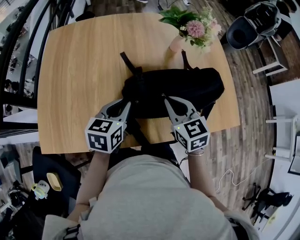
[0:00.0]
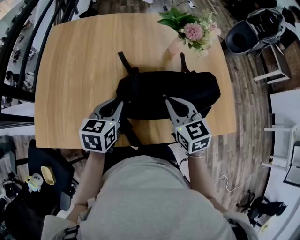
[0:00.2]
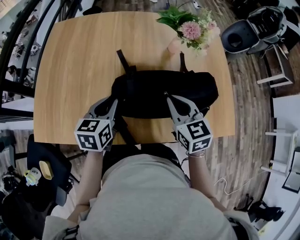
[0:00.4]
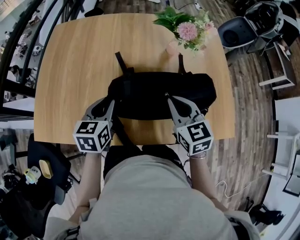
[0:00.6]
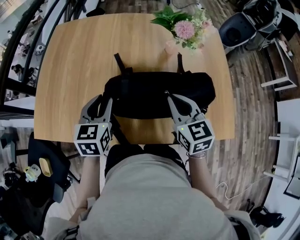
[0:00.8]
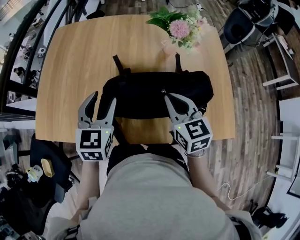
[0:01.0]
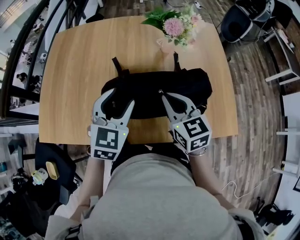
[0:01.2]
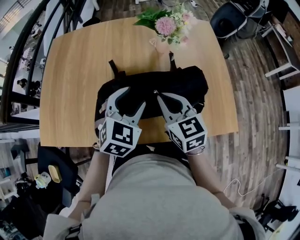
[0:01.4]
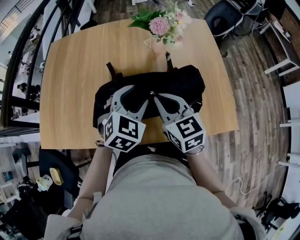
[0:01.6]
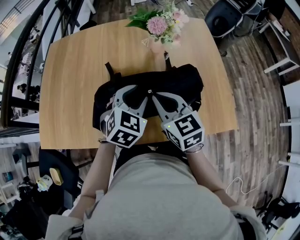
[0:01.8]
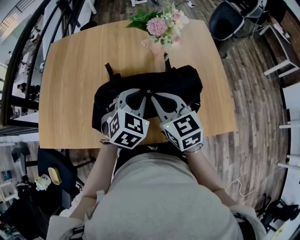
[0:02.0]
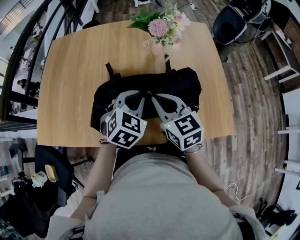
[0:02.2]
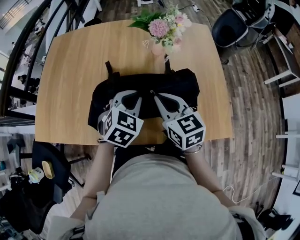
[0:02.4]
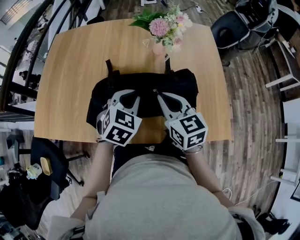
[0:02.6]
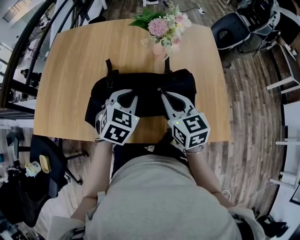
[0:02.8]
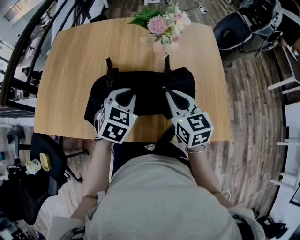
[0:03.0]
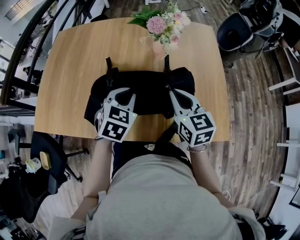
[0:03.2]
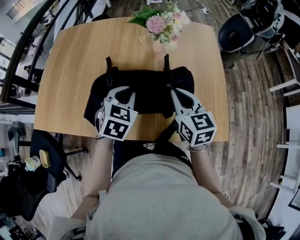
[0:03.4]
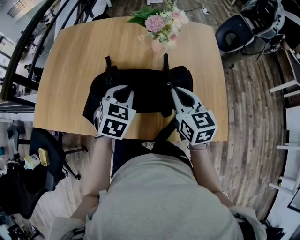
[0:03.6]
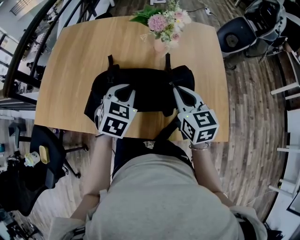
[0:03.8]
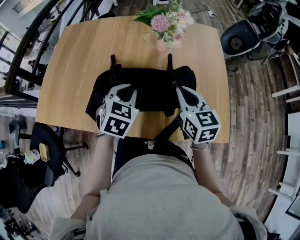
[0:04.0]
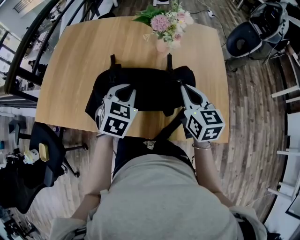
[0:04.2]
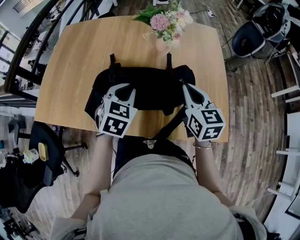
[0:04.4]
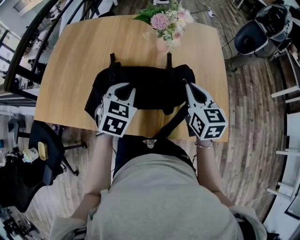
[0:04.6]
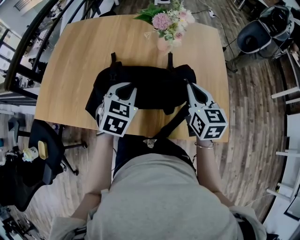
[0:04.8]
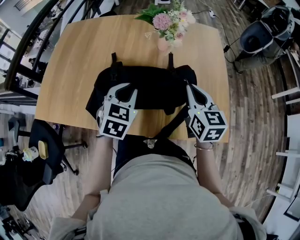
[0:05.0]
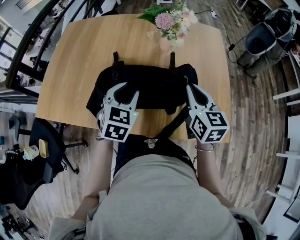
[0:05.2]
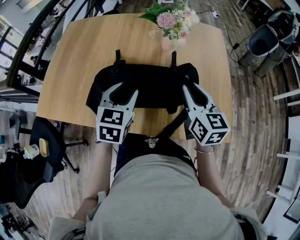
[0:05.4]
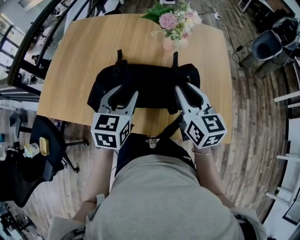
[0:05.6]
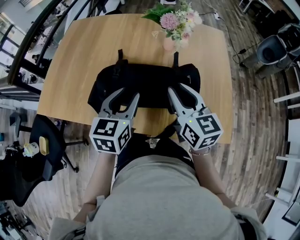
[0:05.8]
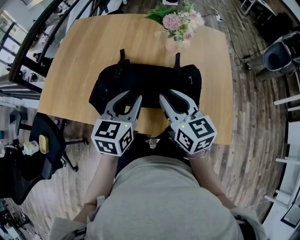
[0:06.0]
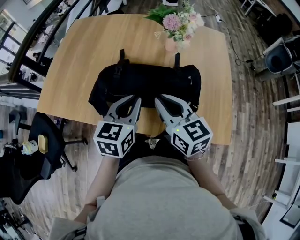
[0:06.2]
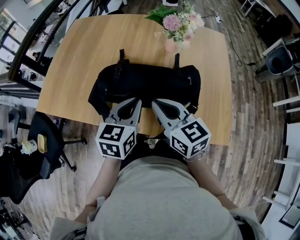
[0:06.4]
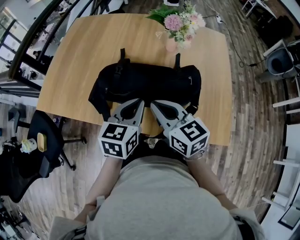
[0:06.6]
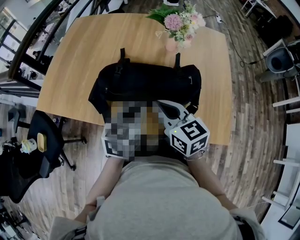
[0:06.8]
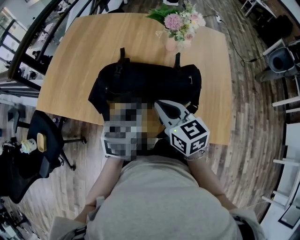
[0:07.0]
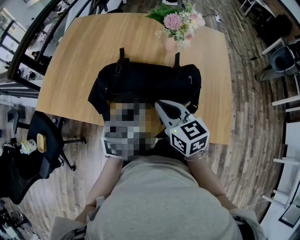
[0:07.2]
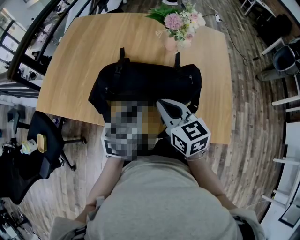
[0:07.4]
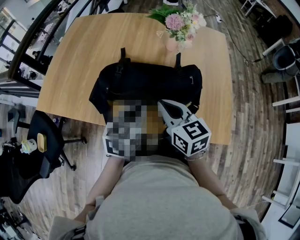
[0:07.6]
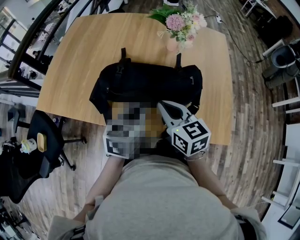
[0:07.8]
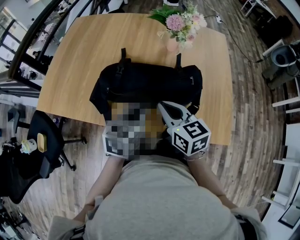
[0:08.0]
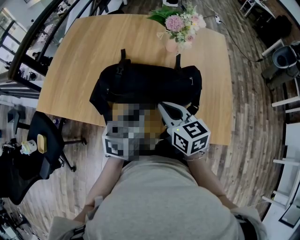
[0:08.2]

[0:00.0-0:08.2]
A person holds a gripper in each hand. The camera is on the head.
0.0 to 1.6 s: The left gripper shifts about 20 cm to the right, twists roughly 40 degrees clockwise, seen from behind, and opens its fingers. The right gripper shifts about 10 cm to the right.
1.6 to 3.2 s: The right gripper shifts approximately 10 cm to the right; the left gripper closes its fingers.
3.2 to 5.0 s: The right gripper shifts about 5 cm to the right.
5.0 to 6.6 s: The right gripper shifts some 15 cm to the left, rotates approximately 30 degrees, and opens, then closes once more. Meanwhile the left gripper travels backward by approximately 5 cm, swivels some 30 degrees, and opens, then closes once more.
6.6 to 8.2 s: The grippers move only a little.

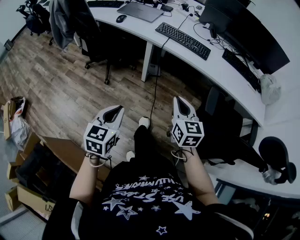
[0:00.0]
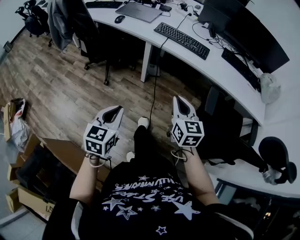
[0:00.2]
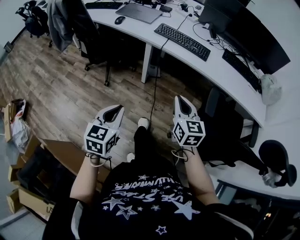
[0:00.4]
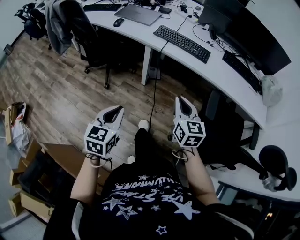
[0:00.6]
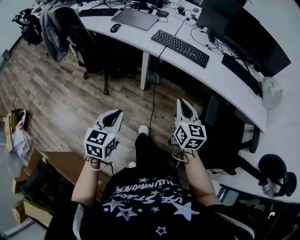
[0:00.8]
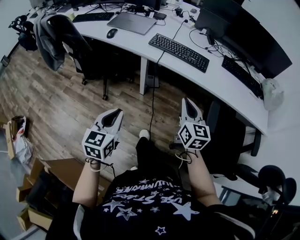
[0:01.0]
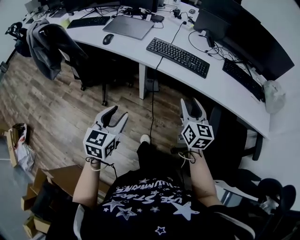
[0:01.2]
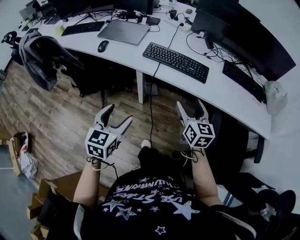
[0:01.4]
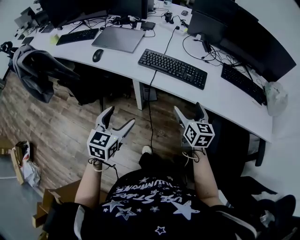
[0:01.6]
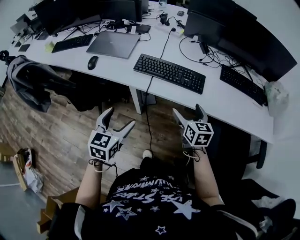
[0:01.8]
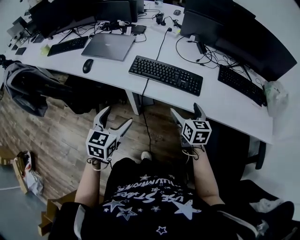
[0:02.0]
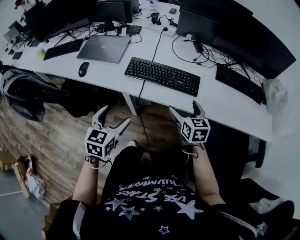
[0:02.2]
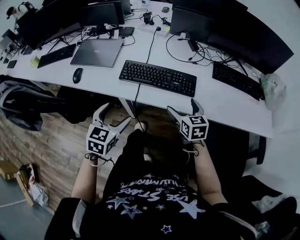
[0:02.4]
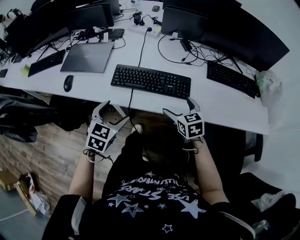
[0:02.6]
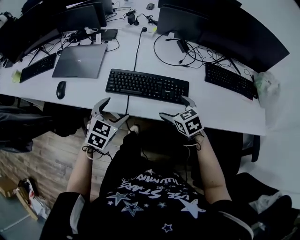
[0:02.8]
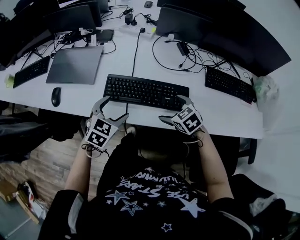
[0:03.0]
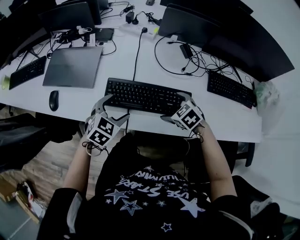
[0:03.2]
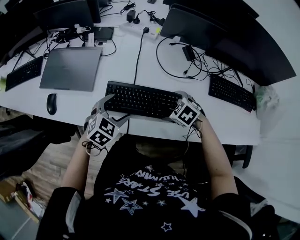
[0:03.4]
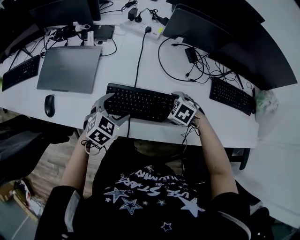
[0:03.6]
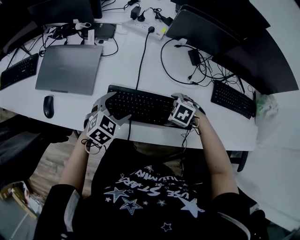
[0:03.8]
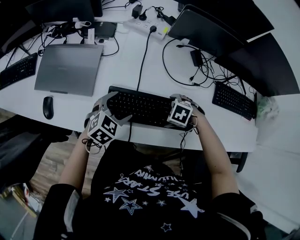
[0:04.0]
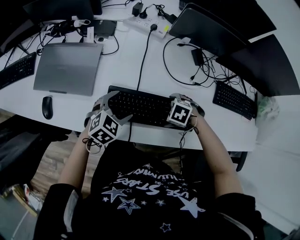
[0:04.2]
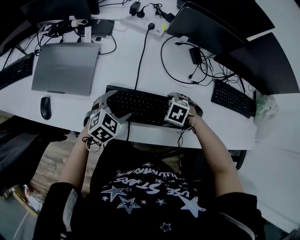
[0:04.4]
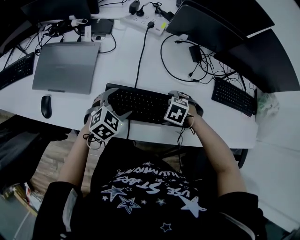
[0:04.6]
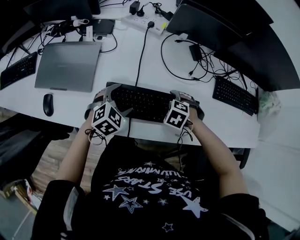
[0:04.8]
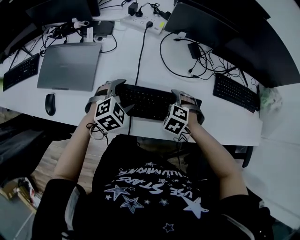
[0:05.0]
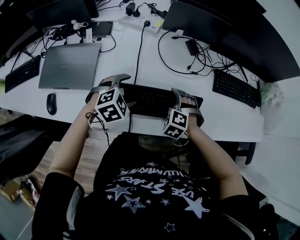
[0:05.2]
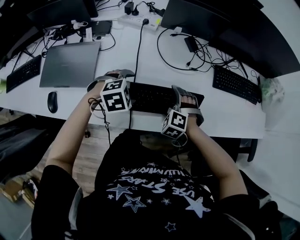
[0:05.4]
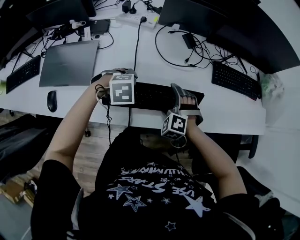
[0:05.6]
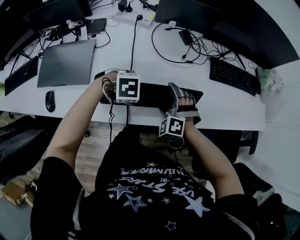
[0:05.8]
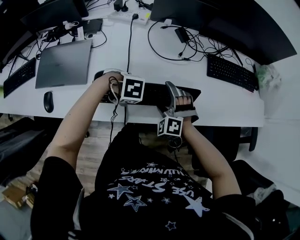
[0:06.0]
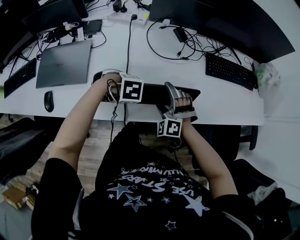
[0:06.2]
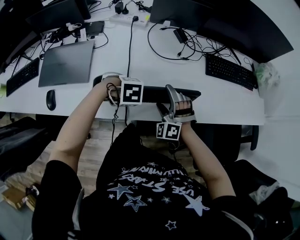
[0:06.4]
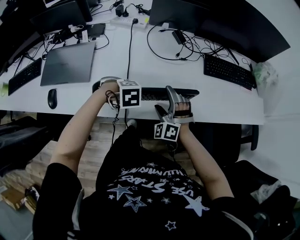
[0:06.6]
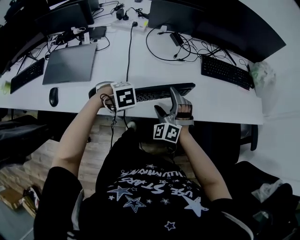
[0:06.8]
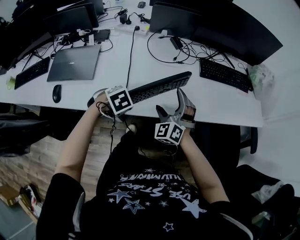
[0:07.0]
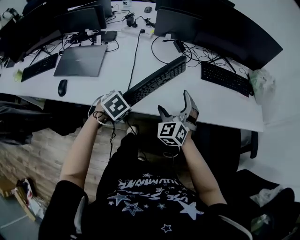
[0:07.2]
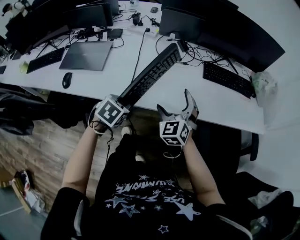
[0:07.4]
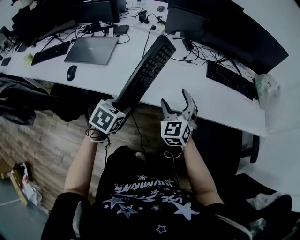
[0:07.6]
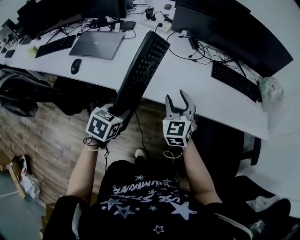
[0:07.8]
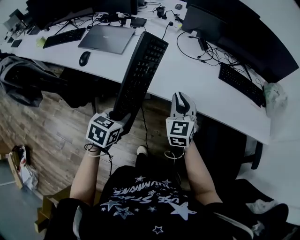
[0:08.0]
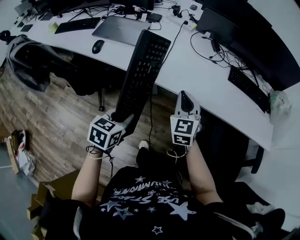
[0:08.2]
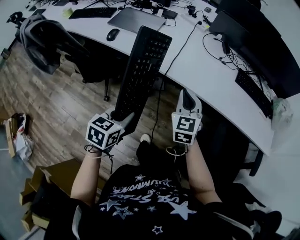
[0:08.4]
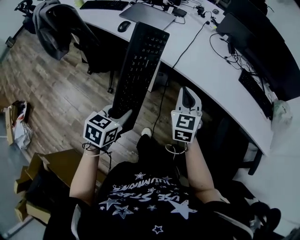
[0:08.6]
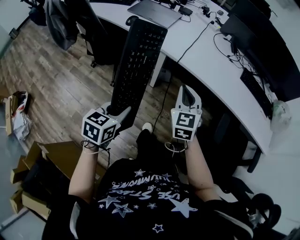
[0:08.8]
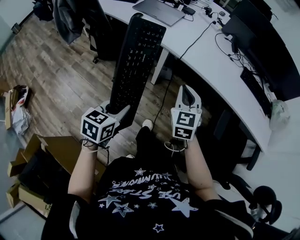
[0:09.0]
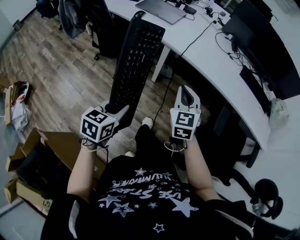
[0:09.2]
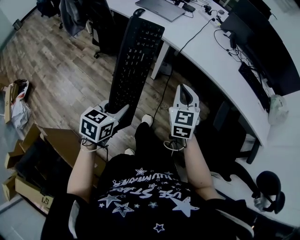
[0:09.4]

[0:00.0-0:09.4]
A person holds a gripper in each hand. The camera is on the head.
0.0 to 1.6 s: The two grippers go some 30 cm forward. The left gripper opens up. The right gripper opens.
1.6 to 3.2 s: The left gripper travels forward by some 35 cm, and changes its angle by some 40 degrees, while the right gripper moves forward and downward, some 25 cm, and tilts its fingers approximately 40 degrees downward.
3.2 to 4.8 s: The left gripper ends up some 10 cm from where it was. Meanwhile the right gripper ends up about 5 cm from where it was, and swivels some 30 degrees.
4.8 to 6.2 s: The right gripper goes roughly 5 cm upward, and points its fingers roughly 50 degrees further upward. Meanwhile the left gripper ends up roughly 10 cm from where it was, points its fingers some 40 degrees further downward, and closes its fingers.
6.2 to 7.8 s: The right gripper changes place by roughly 20 cm, twists roughly 50 degrees clockwise, seen from behind, and closes its fingers. The left gripper changes place by approximately 25 cm, and tips its fingers upward by approximately 40 degrees.
7.8 to 9.4 s: The two grippers go some 35 cm backward. The right gripper closes its fingers; the left gripper swivels some 30 degrees.

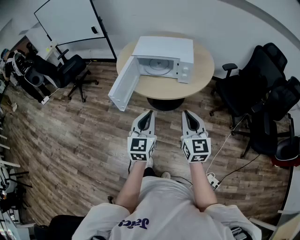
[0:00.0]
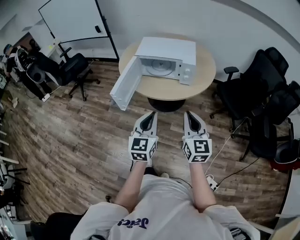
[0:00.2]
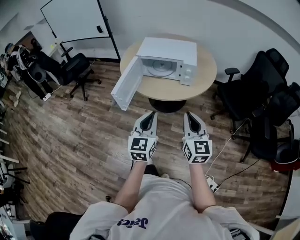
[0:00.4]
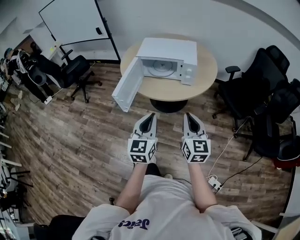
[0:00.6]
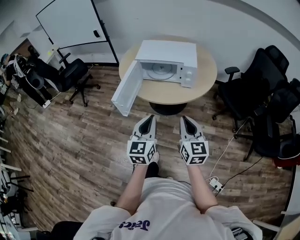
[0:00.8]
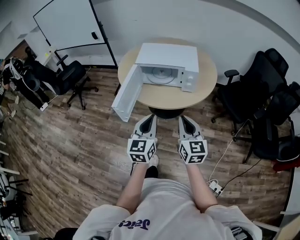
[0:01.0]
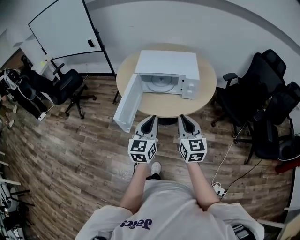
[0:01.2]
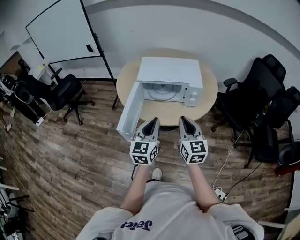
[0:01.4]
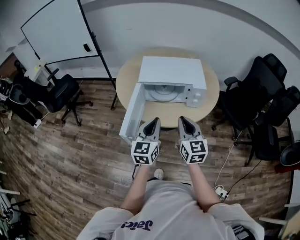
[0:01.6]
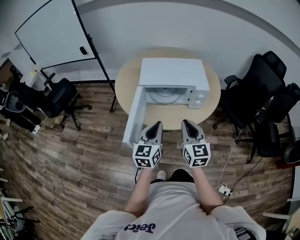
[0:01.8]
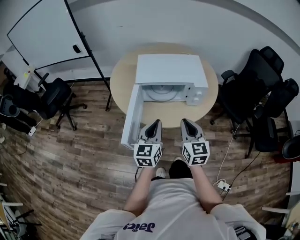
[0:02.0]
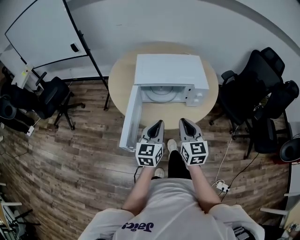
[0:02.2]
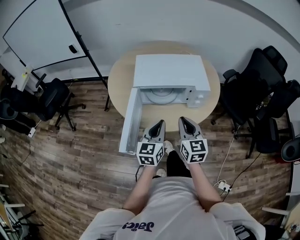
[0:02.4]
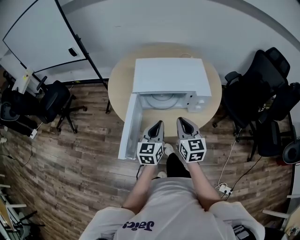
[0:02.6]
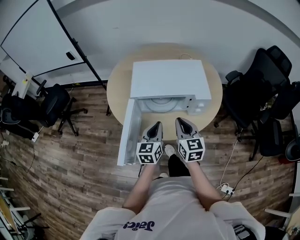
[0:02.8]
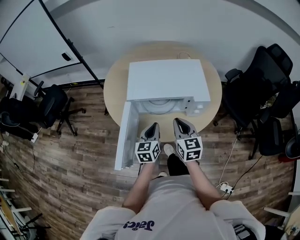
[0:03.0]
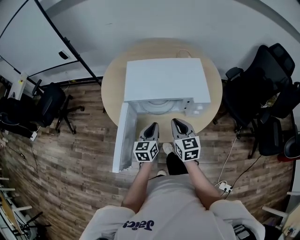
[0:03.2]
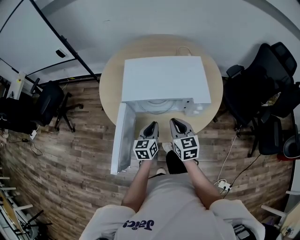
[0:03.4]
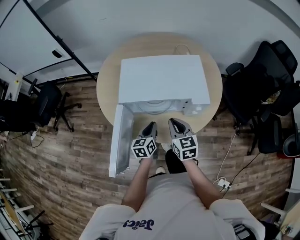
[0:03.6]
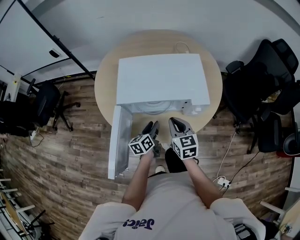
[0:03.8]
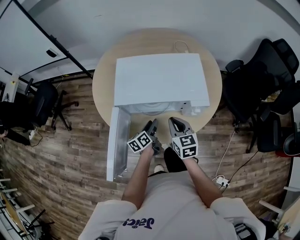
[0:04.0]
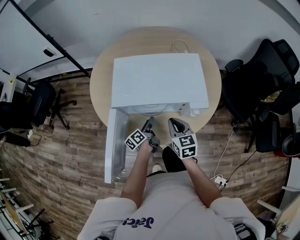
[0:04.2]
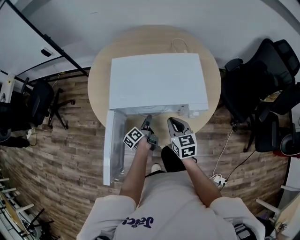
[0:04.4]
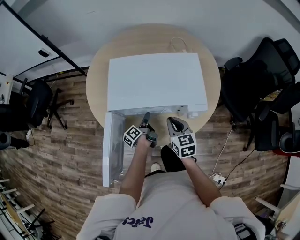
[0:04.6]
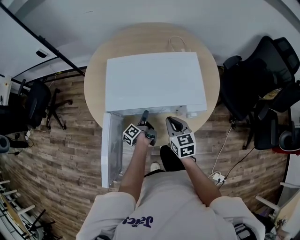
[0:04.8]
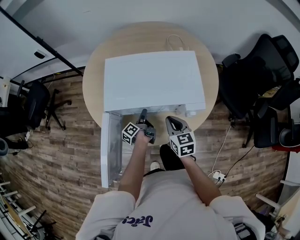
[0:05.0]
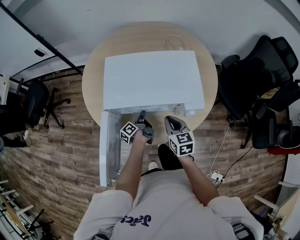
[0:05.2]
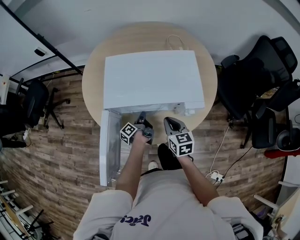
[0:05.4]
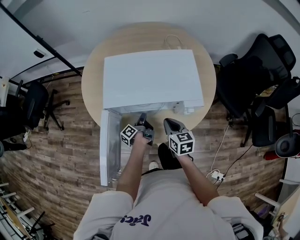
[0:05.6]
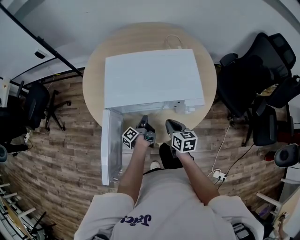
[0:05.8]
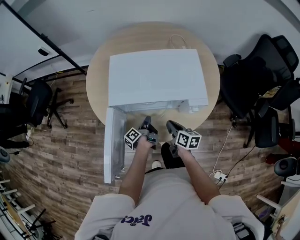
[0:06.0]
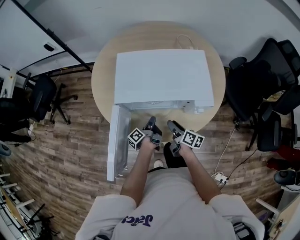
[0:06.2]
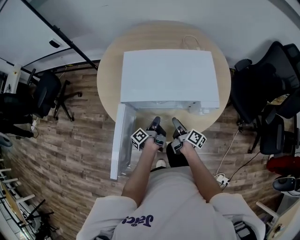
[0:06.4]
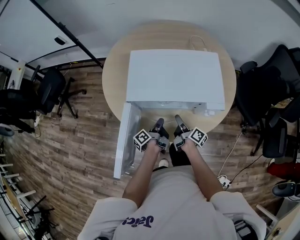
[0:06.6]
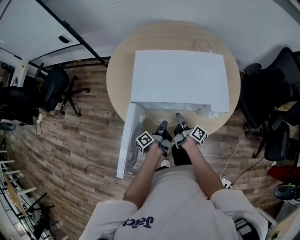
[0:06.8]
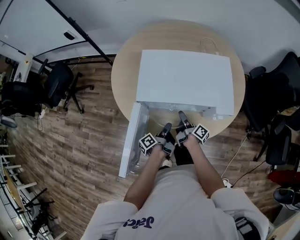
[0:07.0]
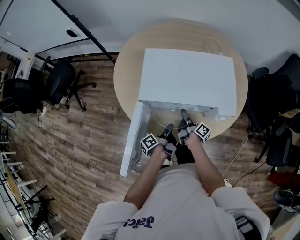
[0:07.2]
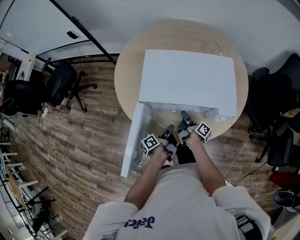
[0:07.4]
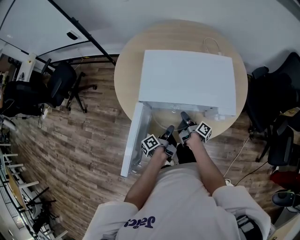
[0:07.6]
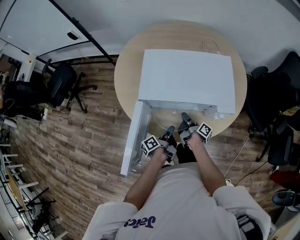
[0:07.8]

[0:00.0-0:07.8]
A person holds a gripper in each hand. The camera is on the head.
0.0 to 1.6 s: The right gripper changes place by some 20 cm.
1.6 to 3.2 s: The right gripper moves roughly 20 cm.
3.2 to 4.6 s: The right gripper moves about 10 cm.
4.6 to 6.2 s: The right gripper shifts some 10 cm downward, rolls clockwise, seen from behind, by roughly 50 degrees, and opens.
6.2 to 7.8 s: The right gripper changes place by roughly 5 cm, swivels some 40 degrees, and closes up.
